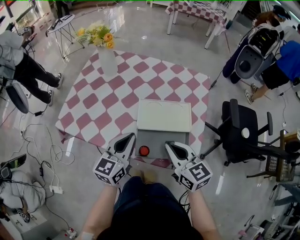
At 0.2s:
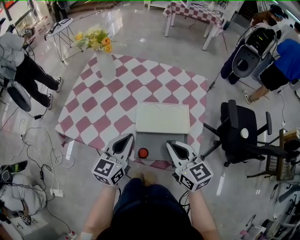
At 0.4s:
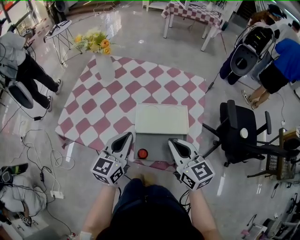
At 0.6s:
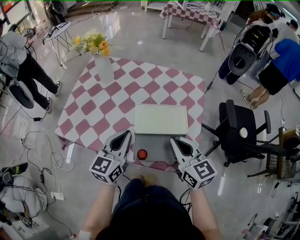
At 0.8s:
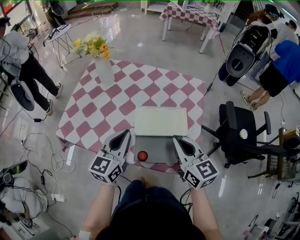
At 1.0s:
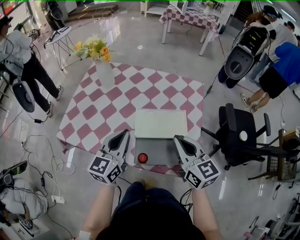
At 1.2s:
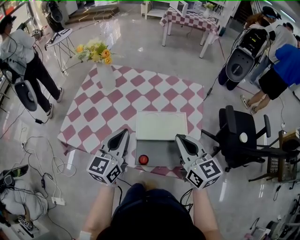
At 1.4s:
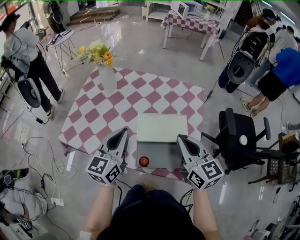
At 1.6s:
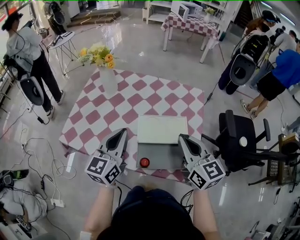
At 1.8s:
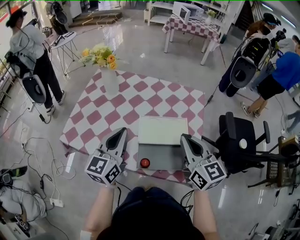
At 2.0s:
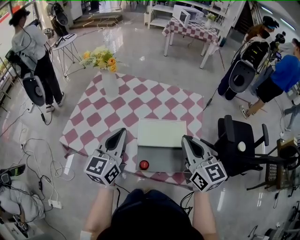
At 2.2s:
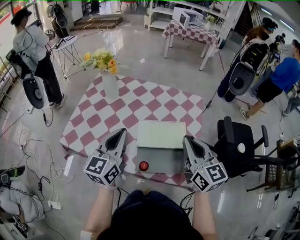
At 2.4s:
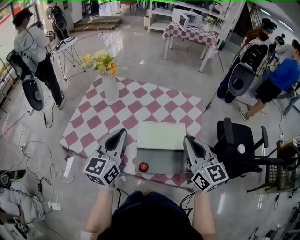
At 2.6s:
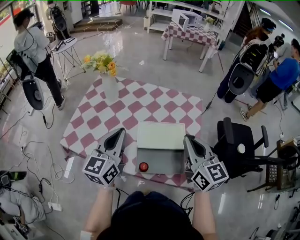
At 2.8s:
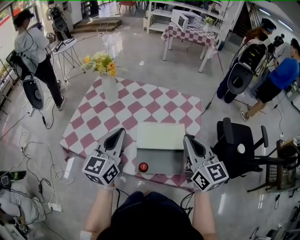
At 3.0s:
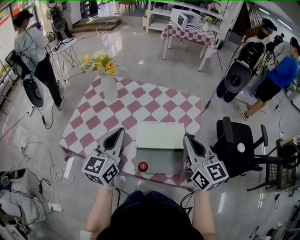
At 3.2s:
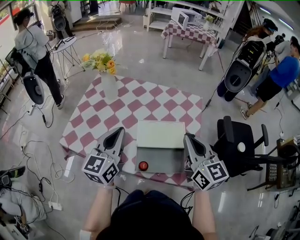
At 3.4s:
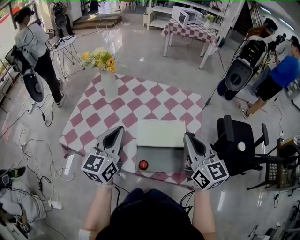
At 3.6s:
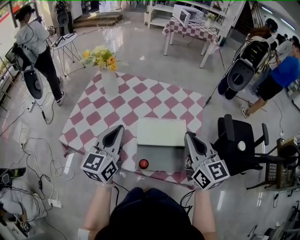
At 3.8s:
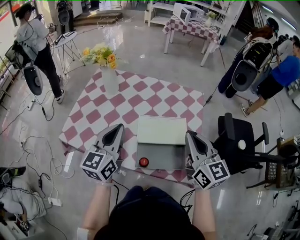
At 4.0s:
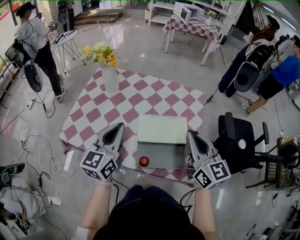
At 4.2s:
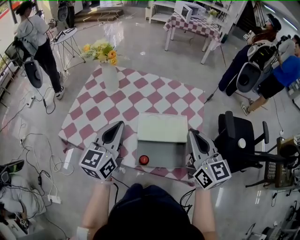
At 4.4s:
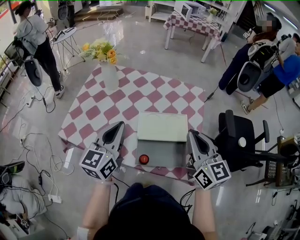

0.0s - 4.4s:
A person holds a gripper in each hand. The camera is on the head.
0.0s - 1.4s: Both grippers move upward, approximately 10 cm.
1.4s - 3.0s: The right gripper shifts by some 5 cm.
3.0s - 4.4s: The grippers make only small movements.

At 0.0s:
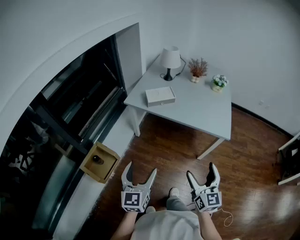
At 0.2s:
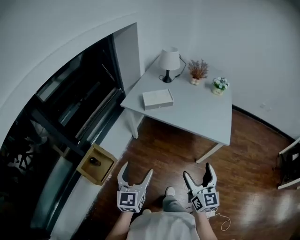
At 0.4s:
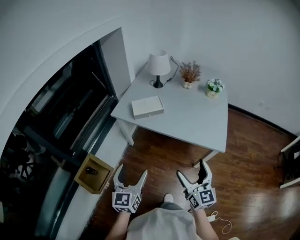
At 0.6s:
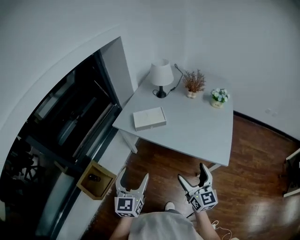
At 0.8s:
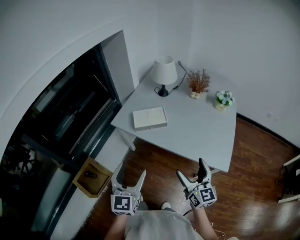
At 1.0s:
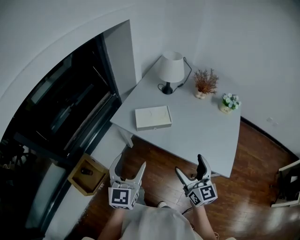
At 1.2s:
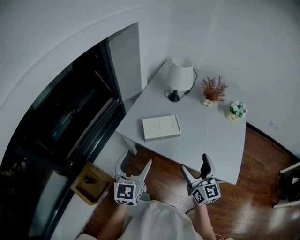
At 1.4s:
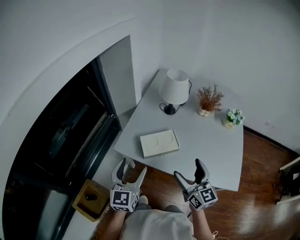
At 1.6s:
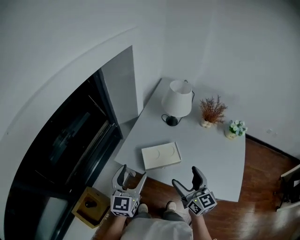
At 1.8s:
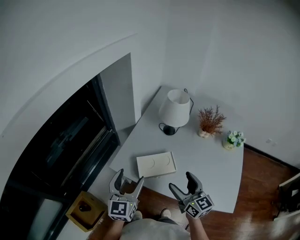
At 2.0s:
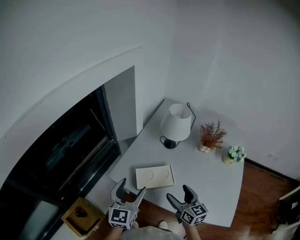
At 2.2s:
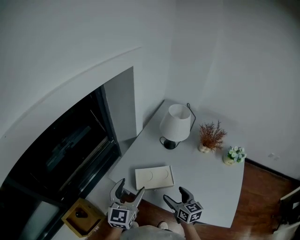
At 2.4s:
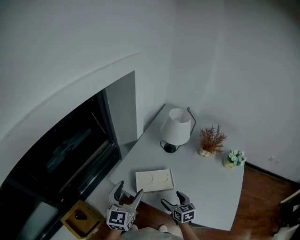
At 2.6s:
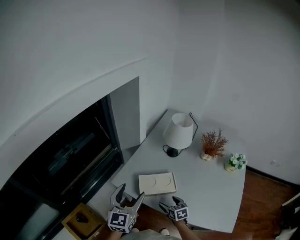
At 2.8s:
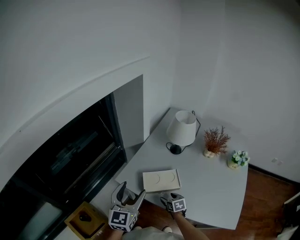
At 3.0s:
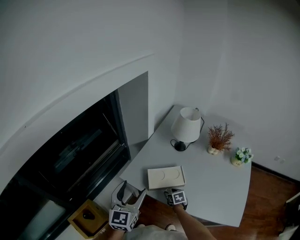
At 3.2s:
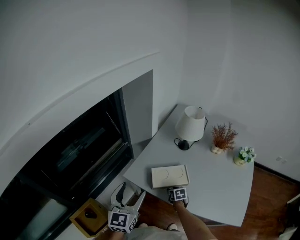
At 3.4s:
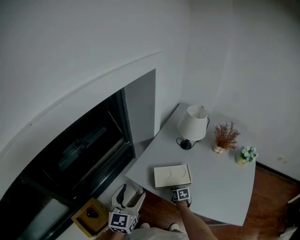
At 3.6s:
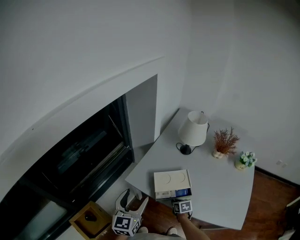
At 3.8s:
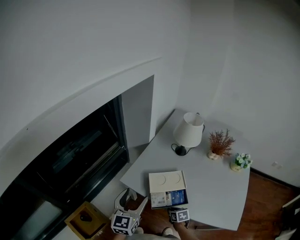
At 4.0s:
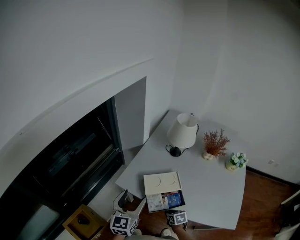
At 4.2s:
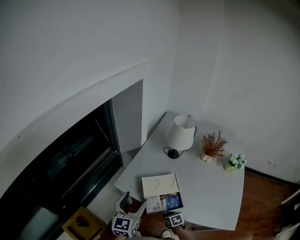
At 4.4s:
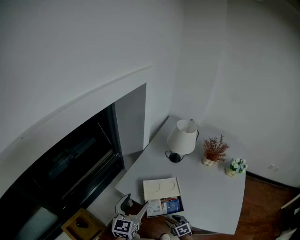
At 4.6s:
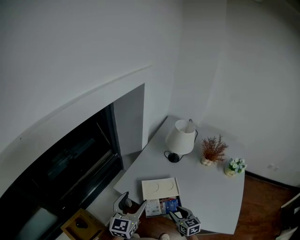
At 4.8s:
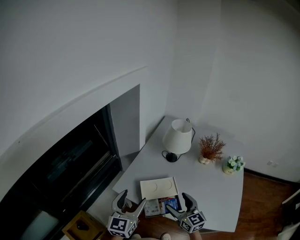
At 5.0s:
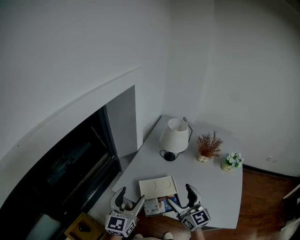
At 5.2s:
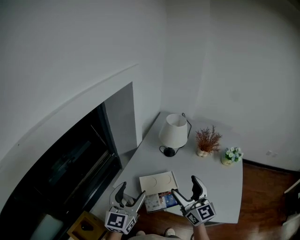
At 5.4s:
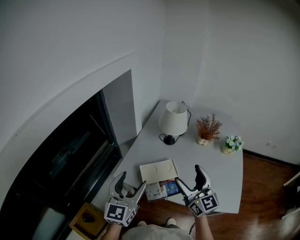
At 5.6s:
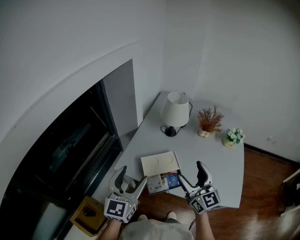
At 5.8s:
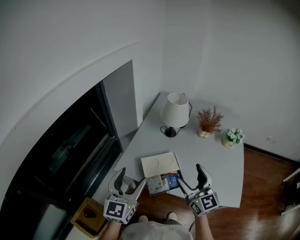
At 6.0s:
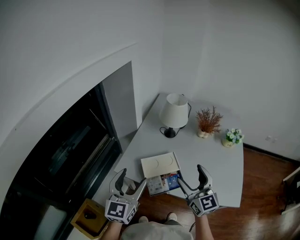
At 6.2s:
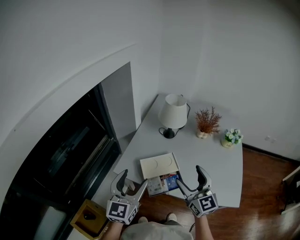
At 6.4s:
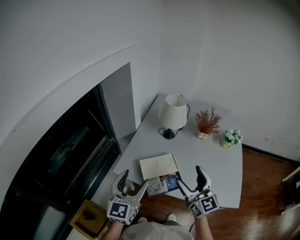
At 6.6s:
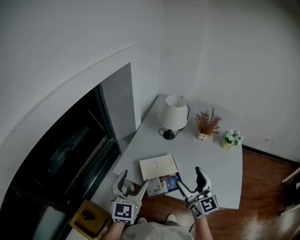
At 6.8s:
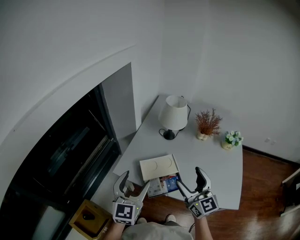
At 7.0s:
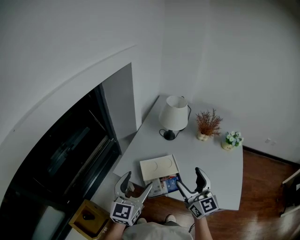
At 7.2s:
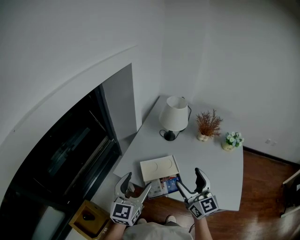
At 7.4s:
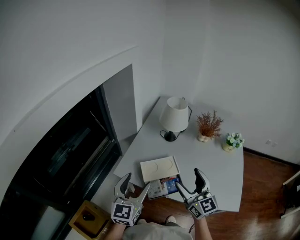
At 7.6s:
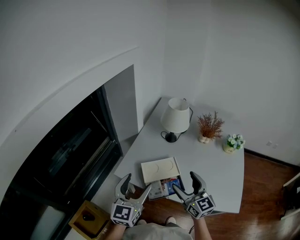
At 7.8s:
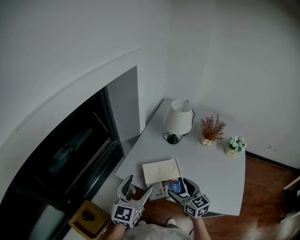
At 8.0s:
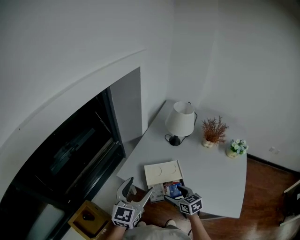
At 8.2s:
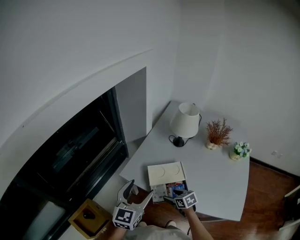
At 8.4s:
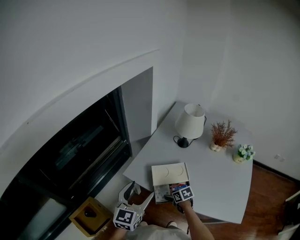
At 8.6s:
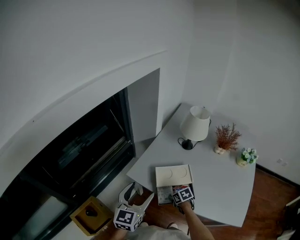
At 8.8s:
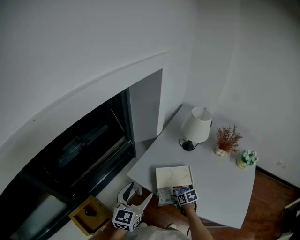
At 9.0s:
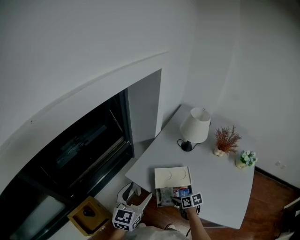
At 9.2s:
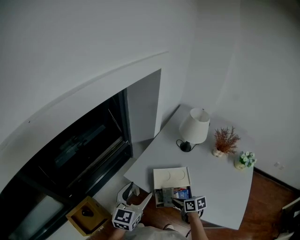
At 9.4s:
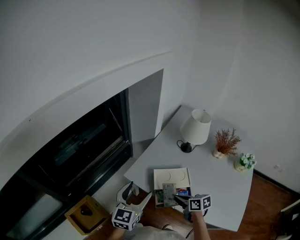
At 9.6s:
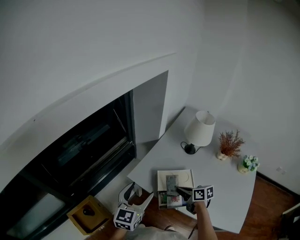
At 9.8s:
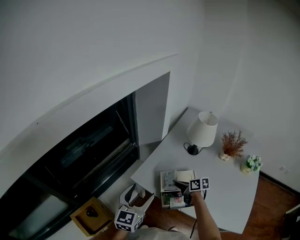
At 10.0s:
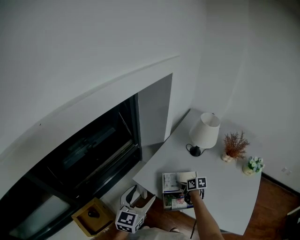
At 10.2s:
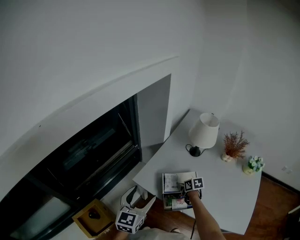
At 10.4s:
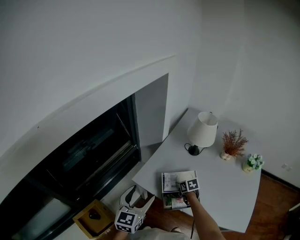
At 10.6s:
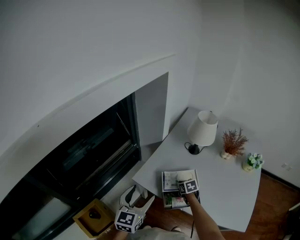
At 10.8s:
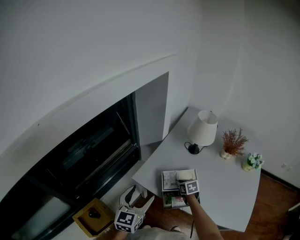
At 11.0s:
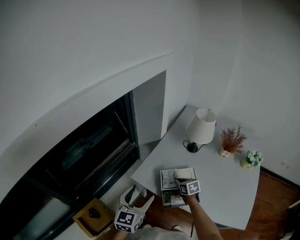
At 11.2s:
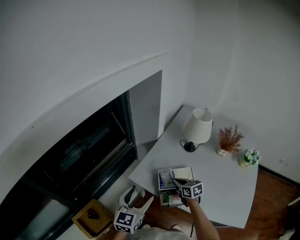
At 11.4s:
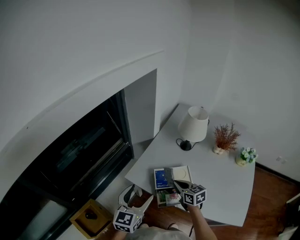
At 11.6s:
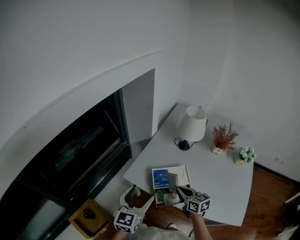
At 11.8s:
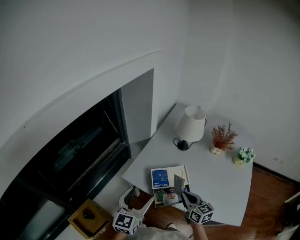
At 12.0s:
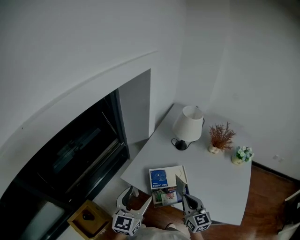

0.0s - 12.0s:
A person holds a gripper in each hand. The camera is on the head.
0.0s - 1.6s: Both grippers are carried forward, some 50 cm.
1.6s - 3.0s: The right gripper is displaced downward by some 30 cm, tips its fingers downward by some 50 degrees, and closes up.
3.0s - 4.4s: The right gripper shifts some 15 cm backward.
4.4s - 6.0s: The right gripper shifts roughly 35 cm upward, tilts its fingers some 50 degrees upward, and opens up; the left gripper shifts about 10 cm upward.
6.0s - 7.6s: The grippers stay close to where they were, moving slightly.
7.6s - 9.0s: The left gripper travels to the left by roughly 5 cm, while the right gripper is displaced downward by some 25 cm, tilts its fingers approximately 40 degrees downward, and closes.
9.0s - 10.4s: The right gripper goes roughly 10 cm forward.
10.4s - 12.0s: The right gripper goes some 25 cm upward and backward, and angles its fingers upward, by about 50 degrees.

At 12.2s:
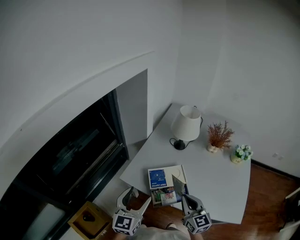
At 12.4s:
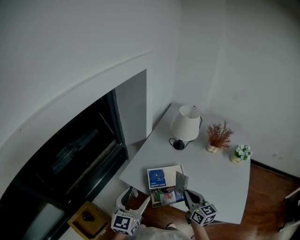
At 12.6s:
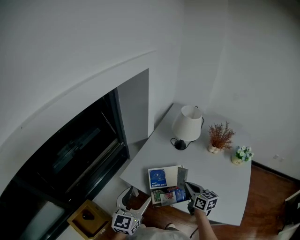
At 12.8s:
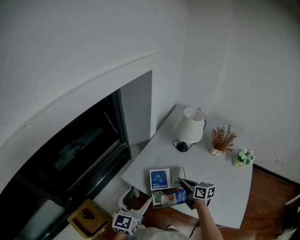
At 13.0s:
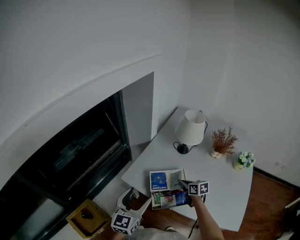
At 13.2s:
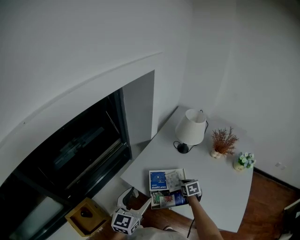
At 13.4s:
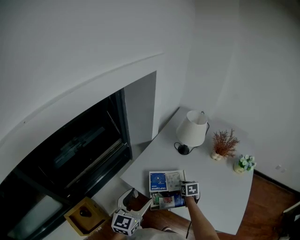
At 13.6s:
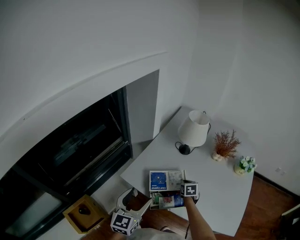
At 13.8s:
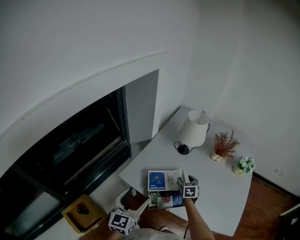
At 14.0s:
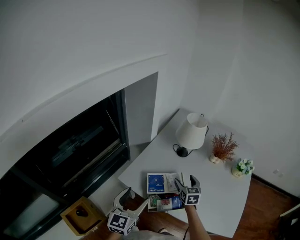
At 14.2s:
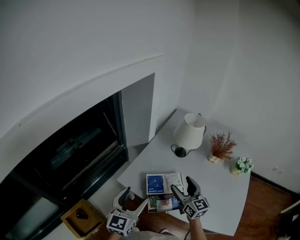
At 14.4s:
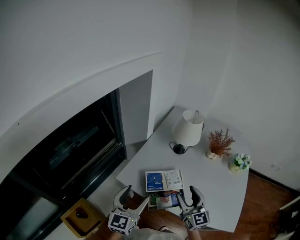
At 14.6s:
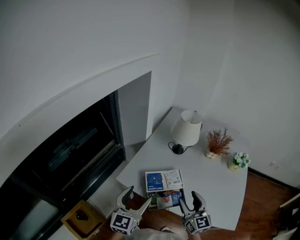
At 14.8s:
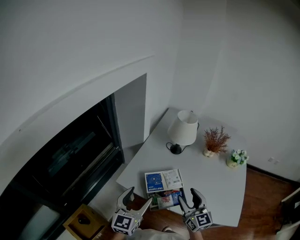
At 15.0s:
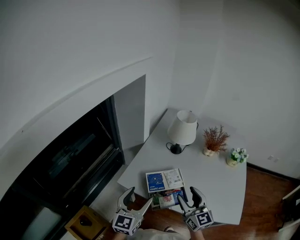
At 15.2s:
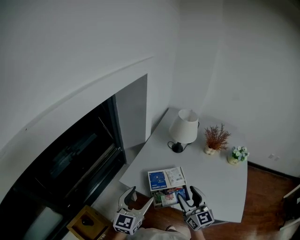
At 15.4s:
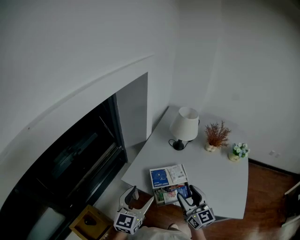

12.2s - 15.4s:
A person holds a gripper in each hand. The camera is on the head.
12.2s - 13.8s: The right gripper moves forward and downward, approximately 25 cm, points its fingers some 30 degrees further downward, and opens its fingers.
13.8s - 15.4s: The right gripper is displaced upward and backward by roughly 30 cm, and angles its fingers upward, by approximately 40 degrees.

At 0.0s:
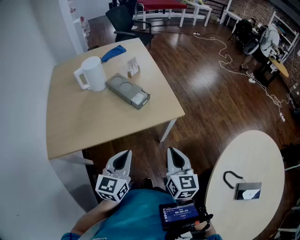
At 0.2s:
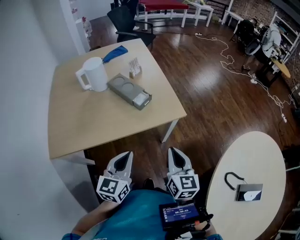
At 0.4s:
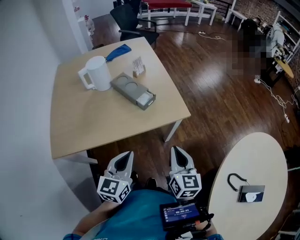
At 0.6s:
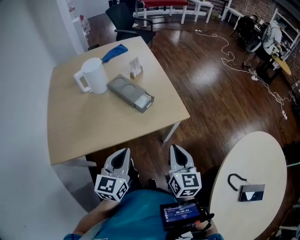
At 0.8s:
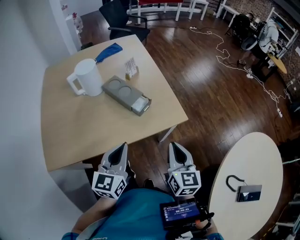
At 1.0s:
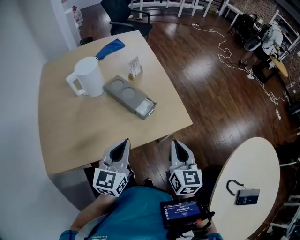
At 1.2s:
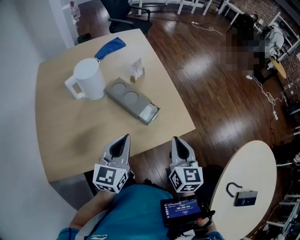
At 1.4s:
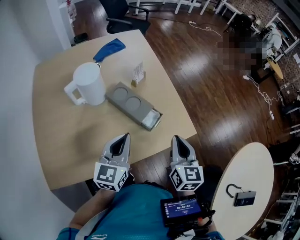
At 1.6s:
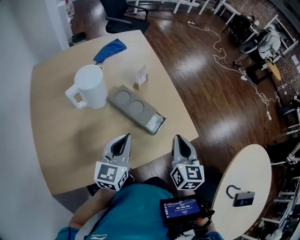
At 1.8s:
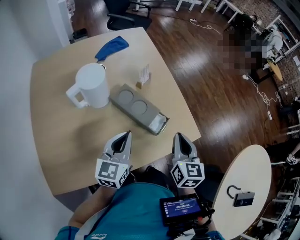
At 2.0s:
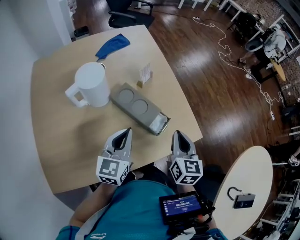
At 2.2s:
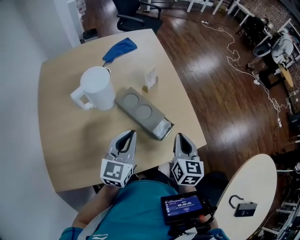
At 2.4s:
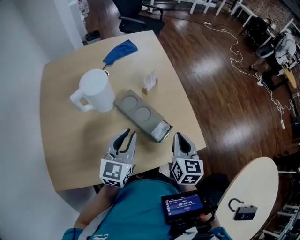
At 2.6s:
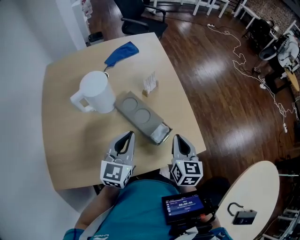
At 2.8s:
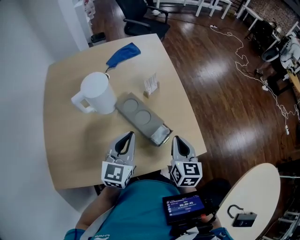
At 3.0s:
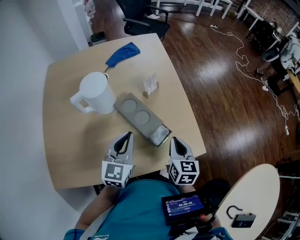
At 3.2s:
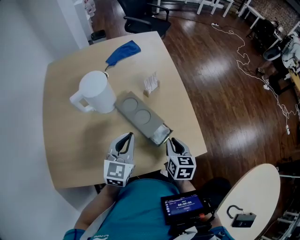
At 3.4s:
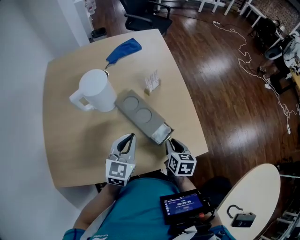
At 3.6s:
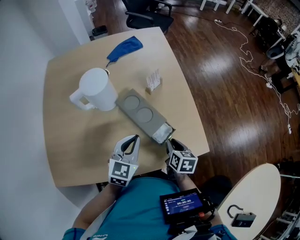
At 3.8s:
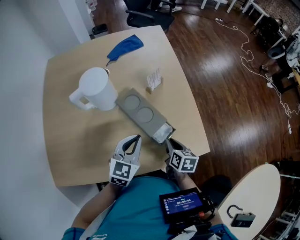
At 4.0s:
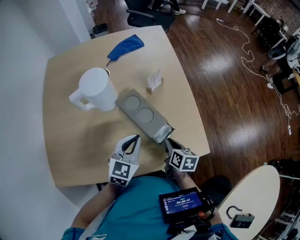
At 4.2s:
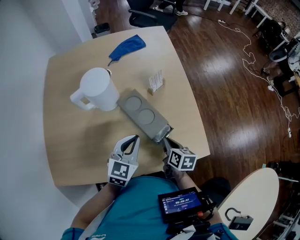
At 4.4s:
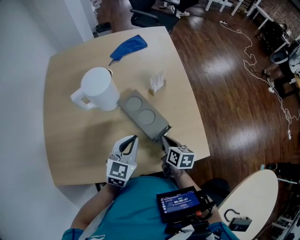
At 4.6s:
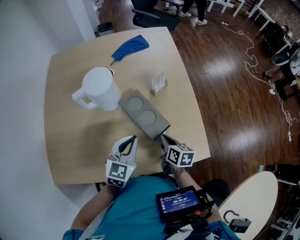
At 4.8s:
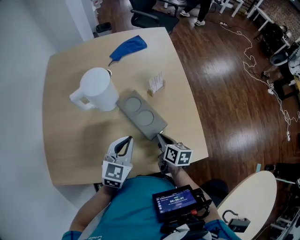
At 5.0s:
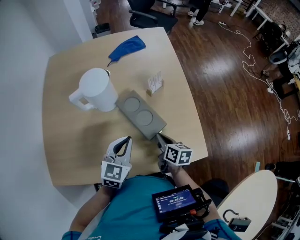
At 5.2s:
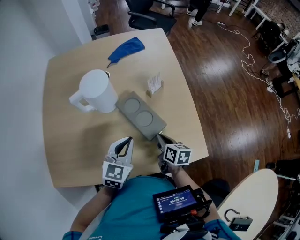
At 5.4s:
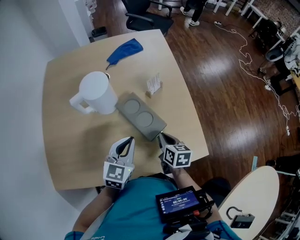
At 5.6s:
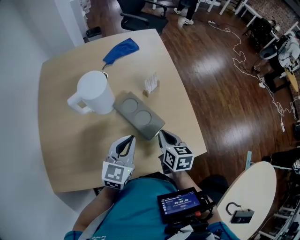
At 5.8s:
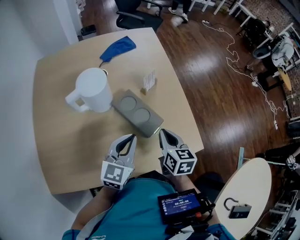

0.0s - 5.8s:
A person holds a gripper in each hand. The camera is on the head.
0.0s - 1.4s: Both grippers travel together forward and to the left, roughly 25 cm.
1.4s - 2.8s: The left gripper shifts about 10 cm forward; the right gripper travels forward and downward by about 10 cm.
2.8s - 4.4s: The right gripper moves downward and to the left, roughly 15 cm, and swivels about 30 degrees, while the left gripper shifts roughly 5 cm downward.
4.4s - 5.8s: The right gripper heads upward, covering about 10 cm, and changes its angle by about 20 degrees.
